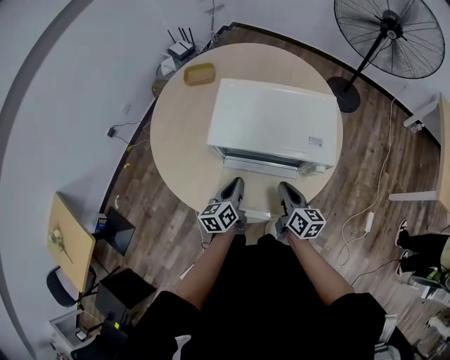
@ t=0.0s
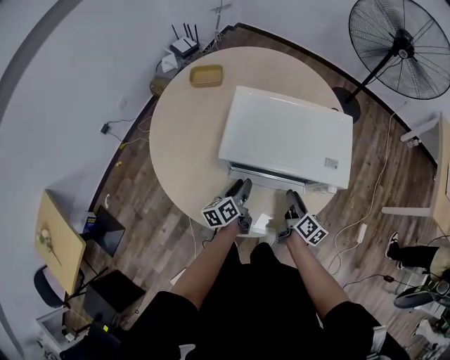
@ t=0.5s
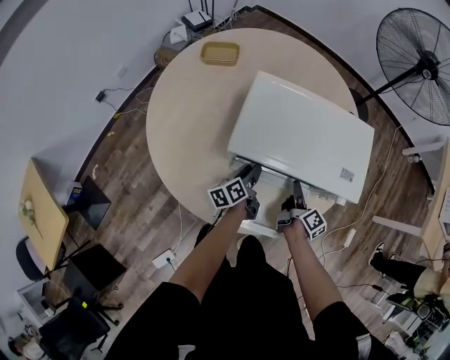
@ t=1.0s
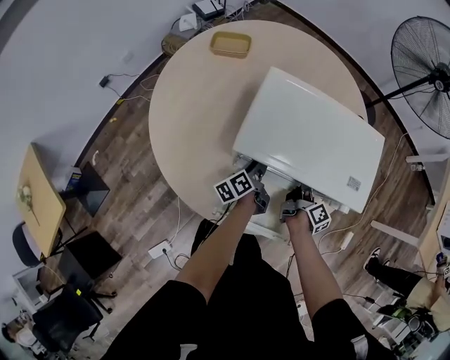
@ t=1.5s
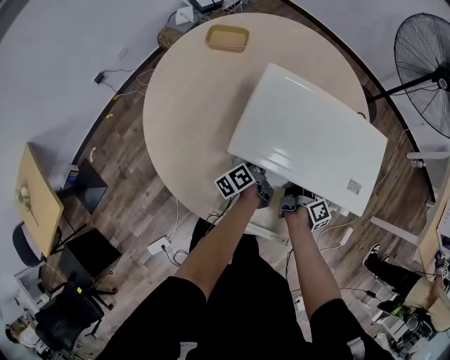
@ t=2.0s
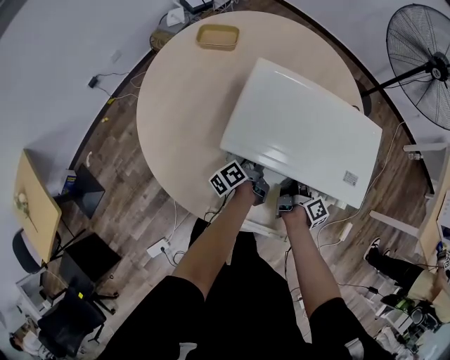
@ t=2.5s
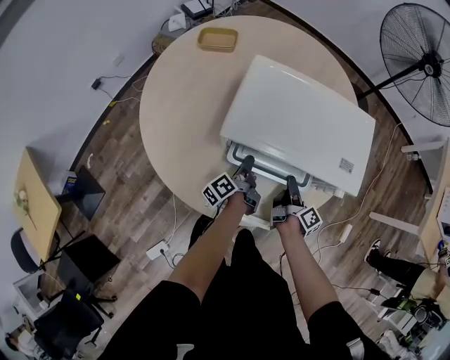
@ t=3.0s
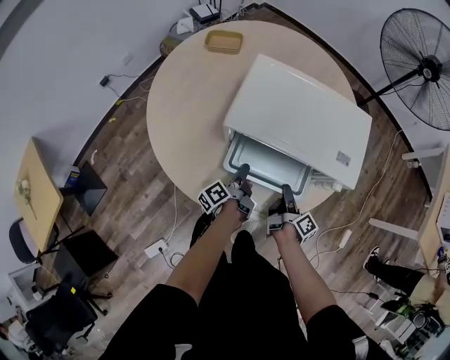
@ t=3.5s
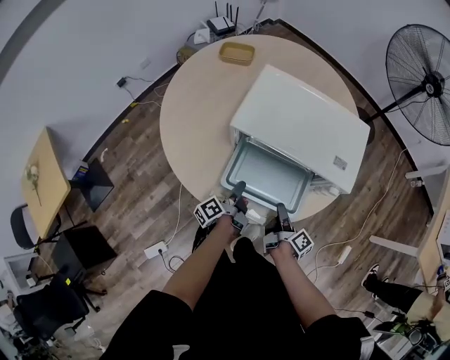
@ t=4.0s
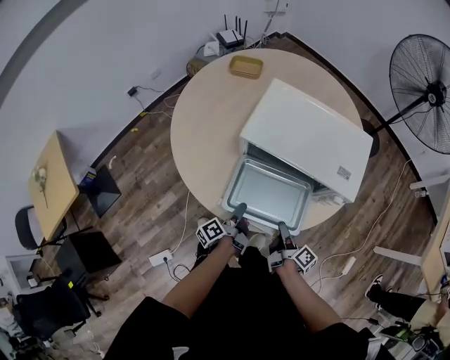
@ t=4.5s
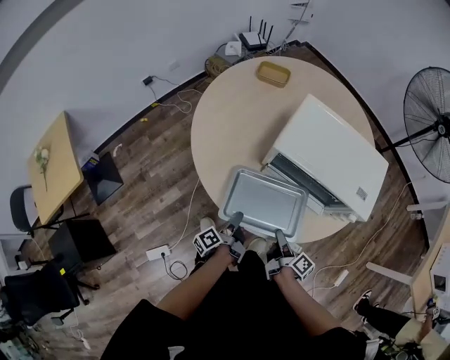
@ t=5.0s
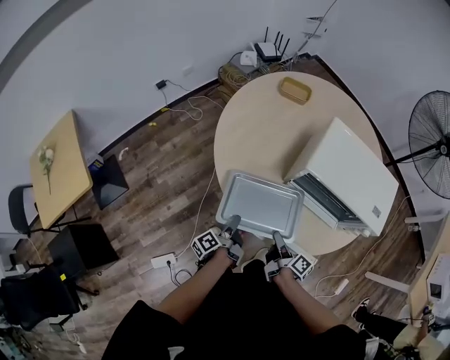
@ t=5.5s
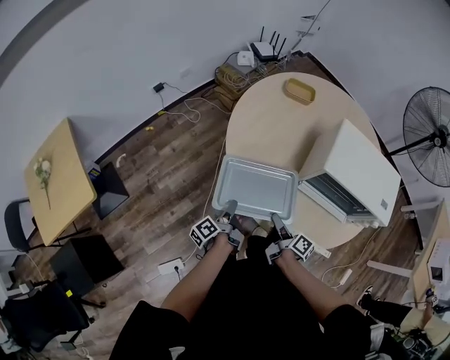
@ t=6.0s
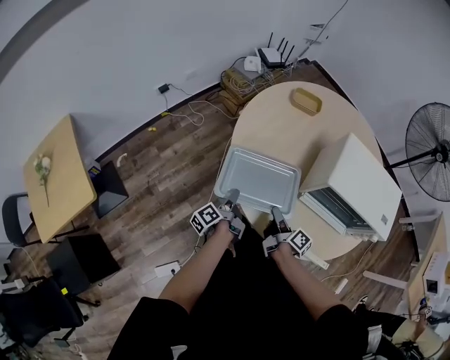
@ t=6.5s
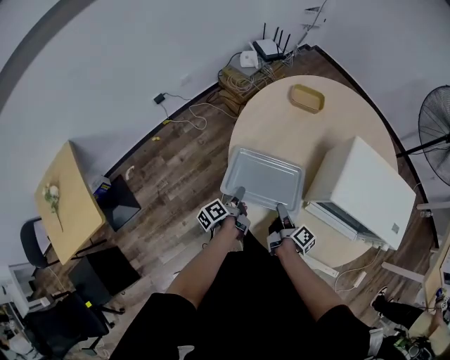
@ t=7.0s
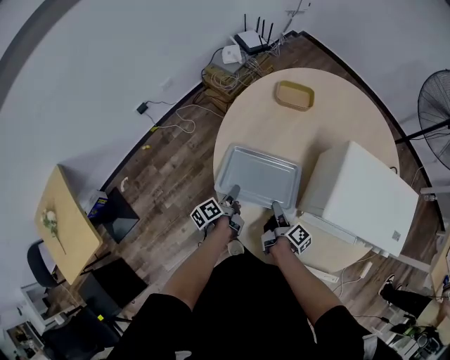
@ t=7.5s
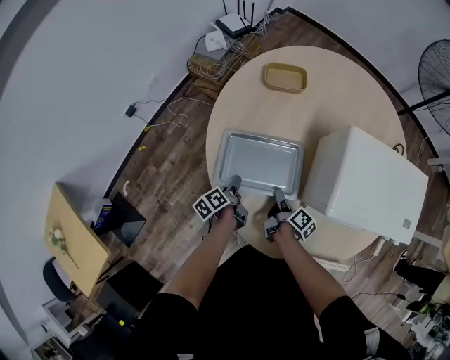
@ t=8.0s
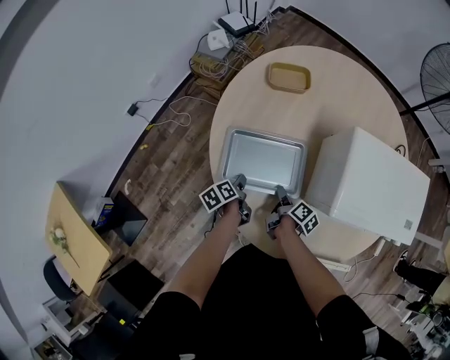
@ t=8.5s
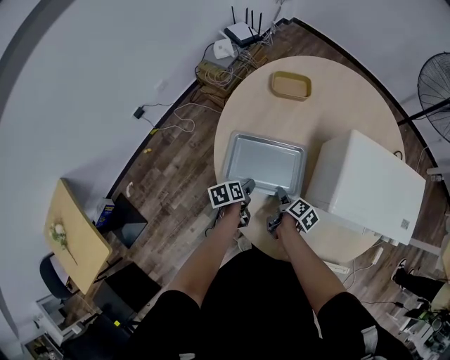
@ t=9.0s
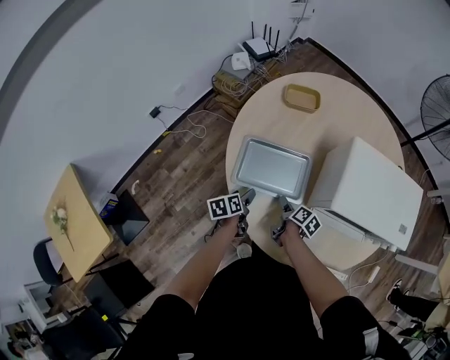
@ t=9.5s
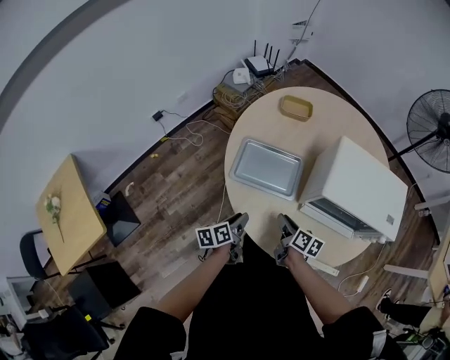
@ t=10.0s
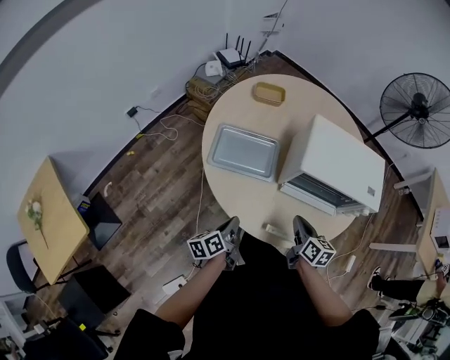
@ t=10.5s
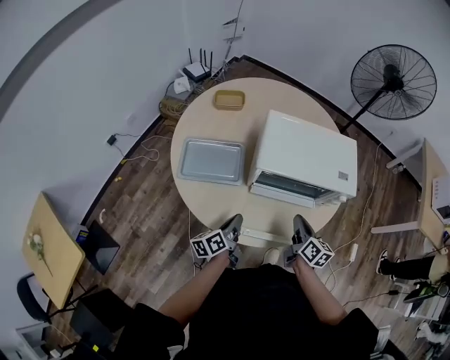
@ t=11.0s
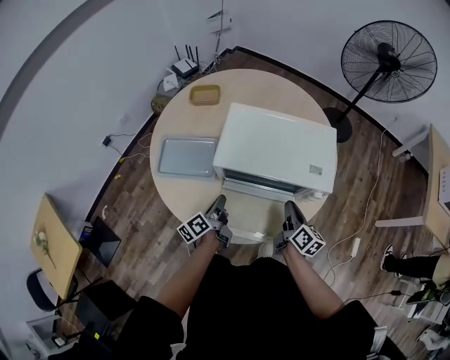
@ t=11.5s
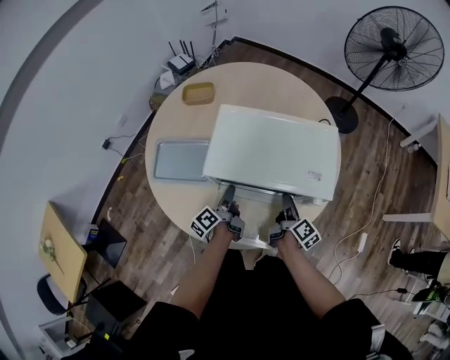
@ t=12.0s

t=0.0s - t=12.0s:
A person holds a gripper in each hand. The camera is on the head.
t=0.0s - t=2.0s: The two grippers go about 20 cm forward and downward. The left gripper rotates around the line of its fingers by approximately 40 degrees, counterclockwise from behind, and opens. The right gripper rolls clockwise, seen from behind, by roughly 40 degrees, and opens.
t=2.0s - t=4.0s: Both grippers move backward, approximately 20 cm.
t=4.0s - t=6.0s: Both grippers move to the left, about 35 cm. The right gripper rotates some 20 degrees.
t=6.0s - t=8.0s: The left gripper heads forward, covering approximately 25 cm, and rotates approximately 30 degrees; the right gripper goes about 25 cm forward and downward, and changes its angle by some 20 degrees.
t=8.0s - t=10.0s: The two grippers go about 20 cm backward and upward. The right gripper changes its angle by approximately 40 degrees, while the left gripper changes its angle by approximately 20 degrees, and opens and closes again.
t=10.0s - t=12.0s: Both grippers travel together to the right, some 35 cm. The right gripper turns by some 40 degrees, and closes and opens again. Meanwhile the left gripper turns by roughly 20 degrees, and closes, then opens again.

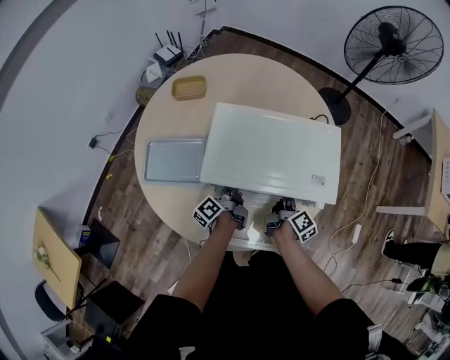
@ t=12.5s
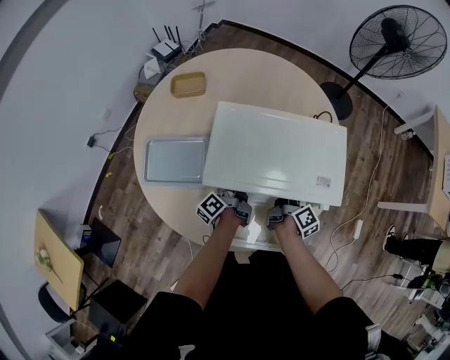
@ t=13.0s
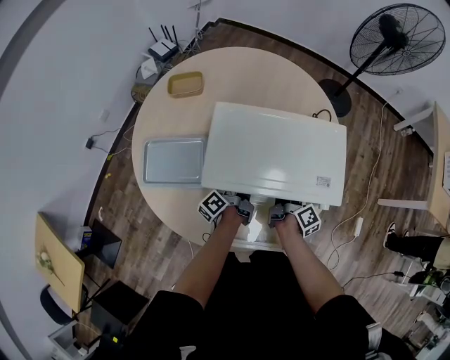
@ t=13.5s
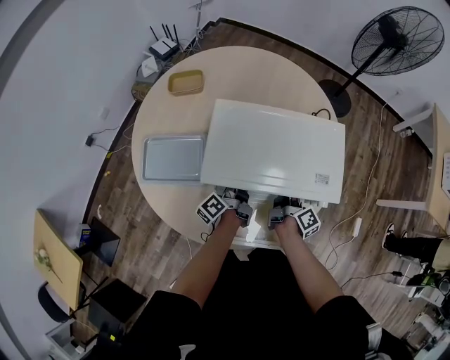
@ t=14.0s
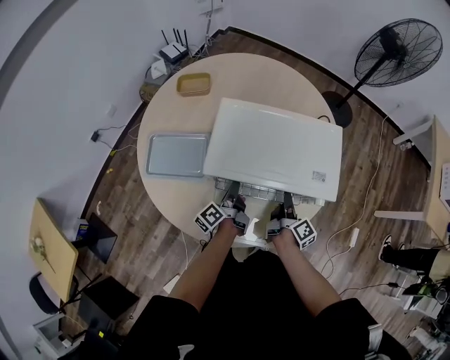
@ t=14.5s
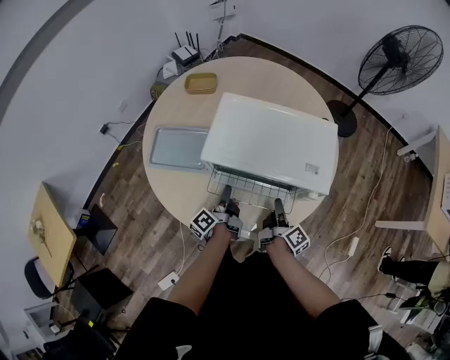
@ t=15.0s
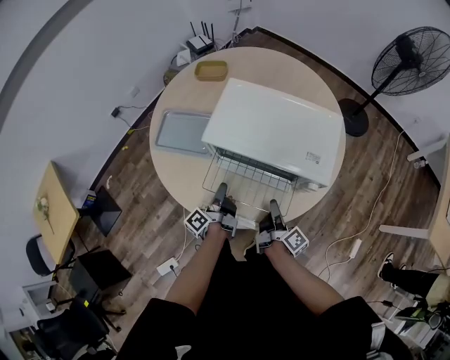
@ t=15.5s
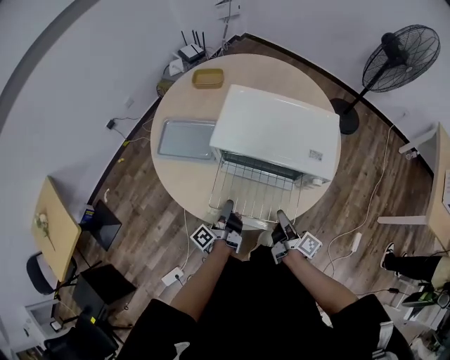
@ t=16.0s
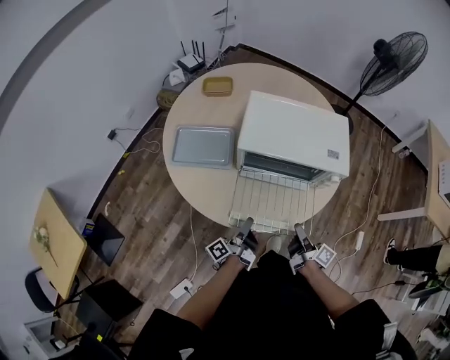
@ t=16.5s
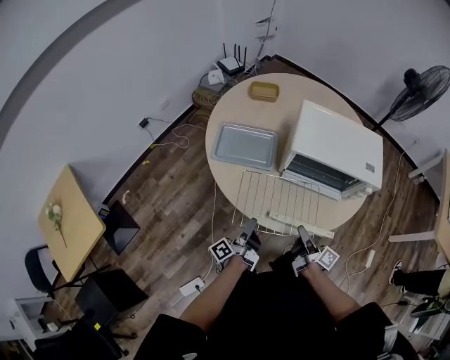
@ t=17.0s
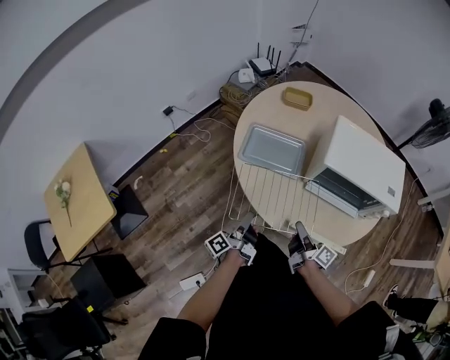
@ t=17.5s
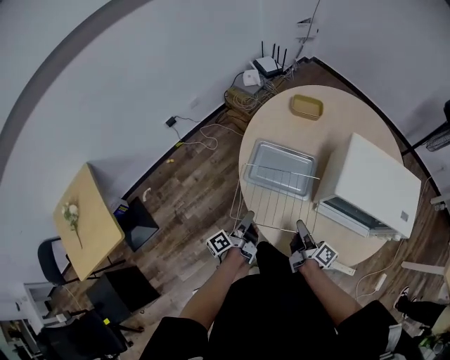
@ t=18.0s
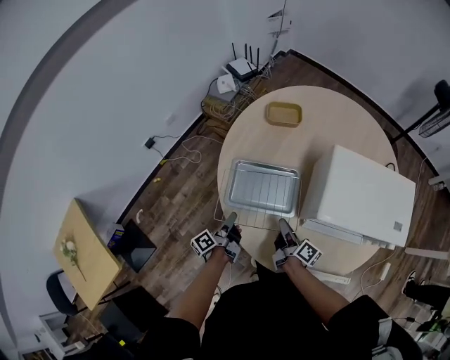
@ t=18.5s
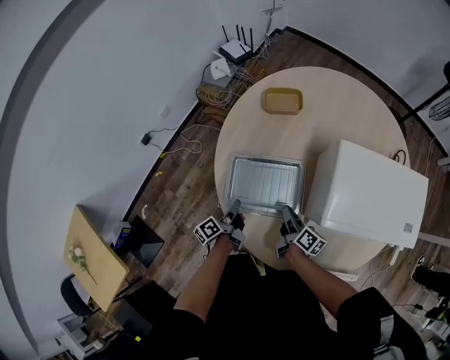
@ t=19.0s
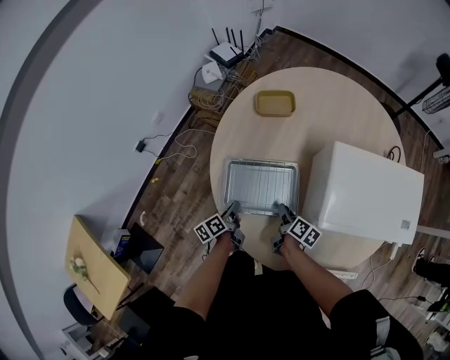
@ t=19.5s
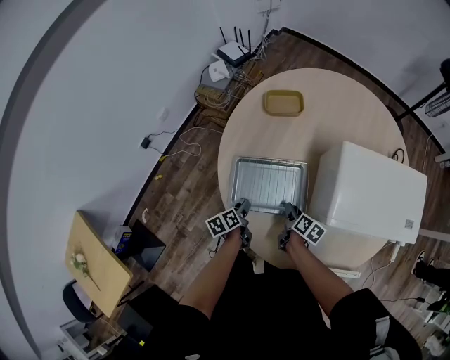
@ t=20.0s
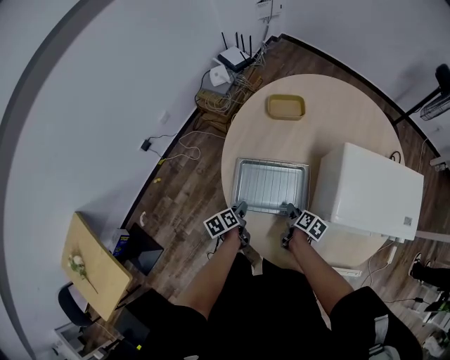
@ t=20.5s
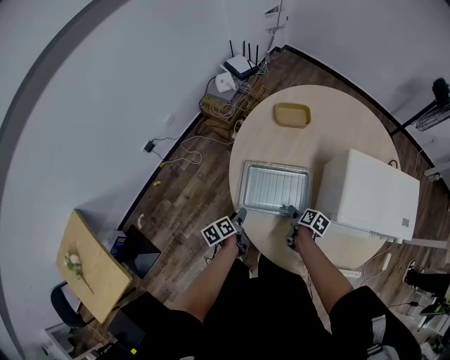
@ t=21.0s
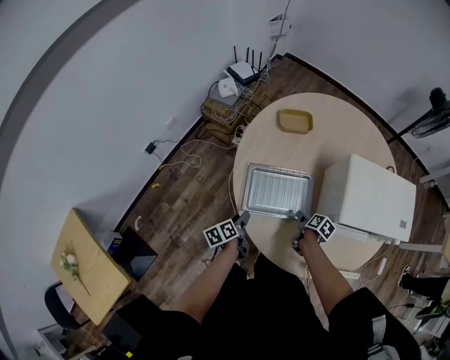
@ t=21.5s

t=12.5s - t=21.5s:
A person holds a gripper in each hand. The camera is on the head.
t=12.5s - t=14.5s: The right gripper closes its fingers, while the left gripper closes up.
t=14.5s - t=17.0s: The left gripper goes some 30 cm backward and to the left; the right gripper goes roughly 30 cm to the left and backward, and turns by about 30 degrees.
t=17.0s - t=19.5s: The right gripper is displaced forward and to the left by about 35 cm, and tilts its fingers approximately 30 degrees downward. Meanwhile the left gripper moves forward, approximately 35 cm, and angles its fingers downward, by about 40 degrees.
t=19.5s - t=21.5s: The left gripper shifts roughly 5 cm to the left, and opens, while the right gripper changes its angle by about 20 degrees, and opens.

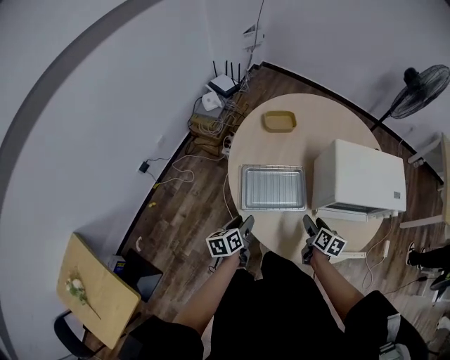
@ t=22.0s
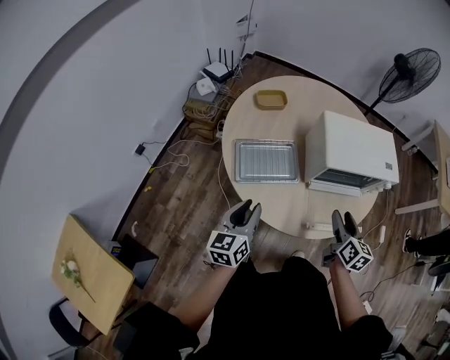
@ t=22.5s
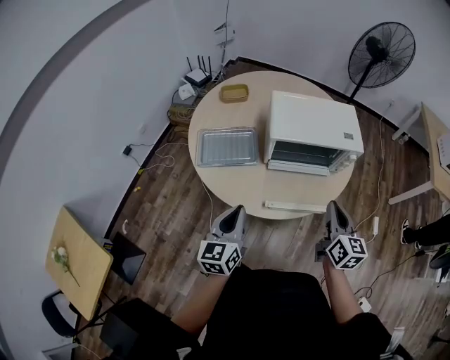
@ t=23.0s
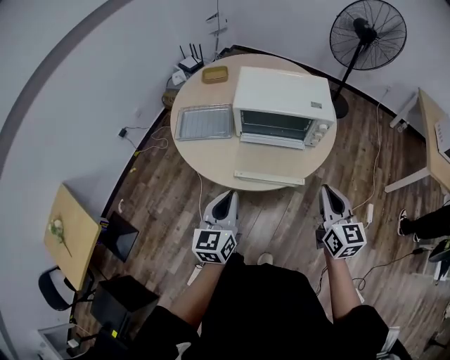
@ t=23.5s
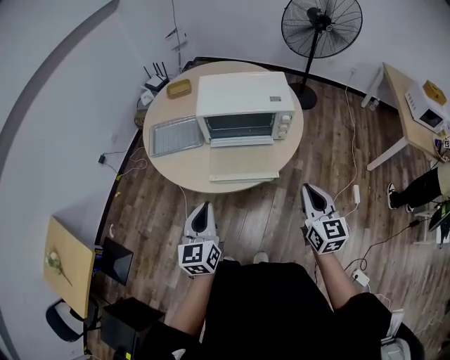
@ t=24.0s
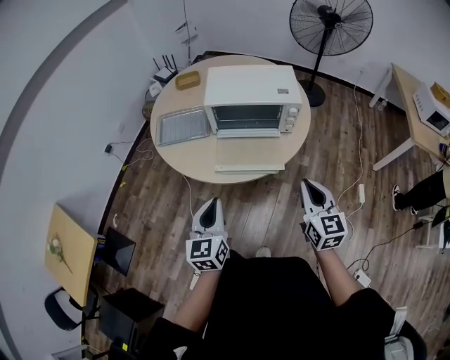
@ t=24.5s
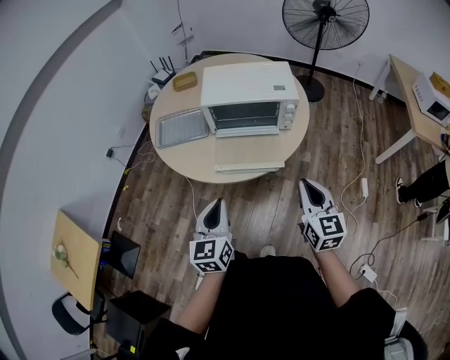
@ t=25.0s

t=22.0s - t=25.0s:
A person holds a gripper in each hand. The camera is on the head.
t=22.0s - t=23.5s: The pair of grippers is taken to the right and backward, some 50 cm. Both grippers travel together upward, about 20 cm. The right gripper swivels roughly 40 degrees, and closes its fingers. The left gripper turns by approximately 40 degrees, and closes.
t=23.5s - t=25.0s: Both grippers move backward, some 5 cm.

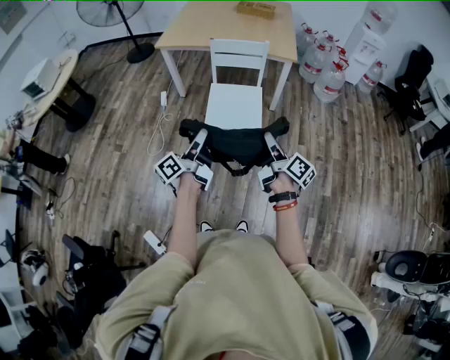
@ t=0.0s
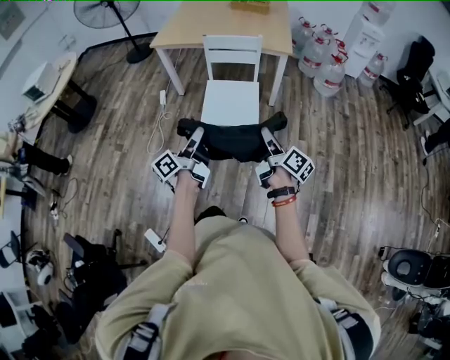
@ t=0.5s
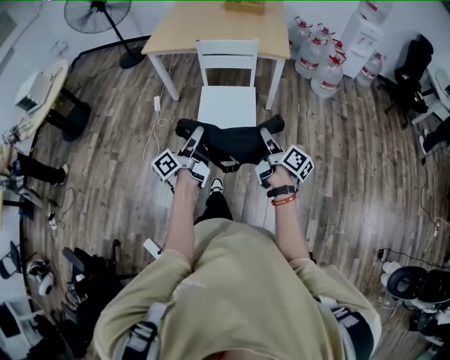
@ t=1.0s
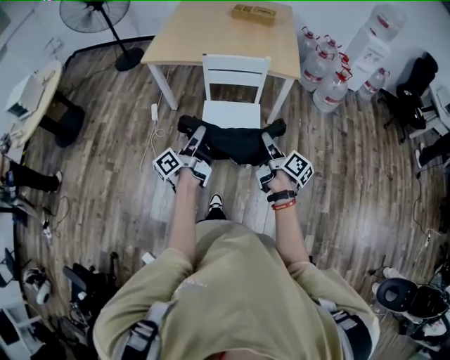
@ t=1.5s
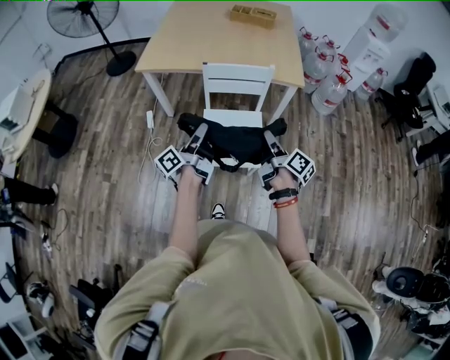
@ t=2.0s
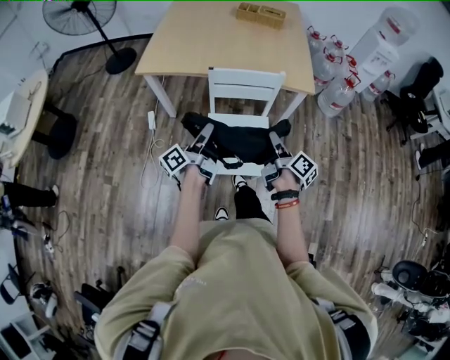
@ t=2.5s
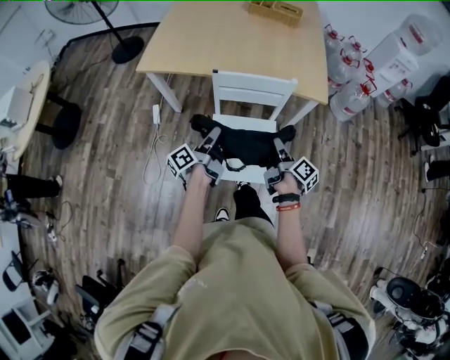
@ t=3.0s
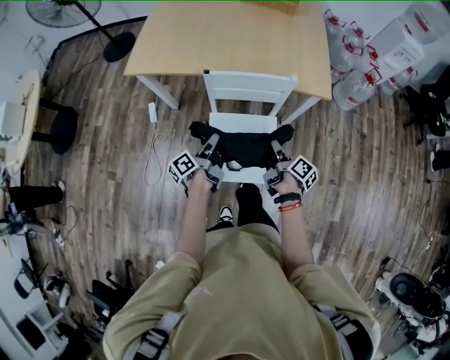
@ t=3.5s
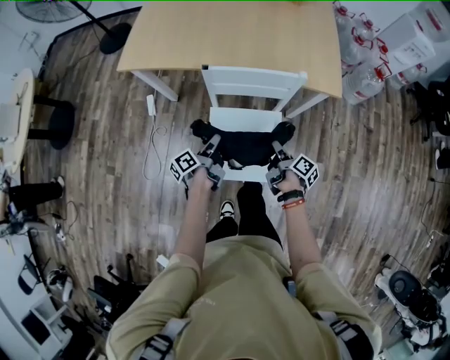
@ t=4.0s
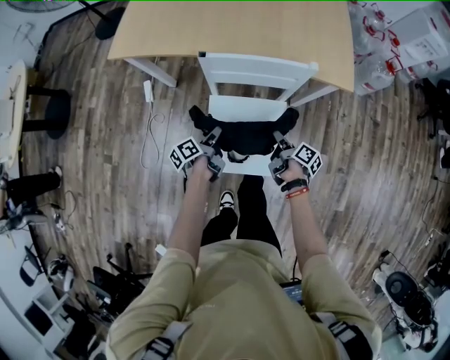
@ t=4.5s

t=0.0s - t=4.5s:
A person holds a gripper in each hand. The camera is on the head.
t=0.0s - t=2.0s: Both grippers move forward, roughly 30 cm.
t=2.0s - t=4.5s: Both grippers move downward and forward, some 40 cm. The right gripper turns by roughly 30 degrees; the left gripper tilts its fingers about 40 degrees downward.
